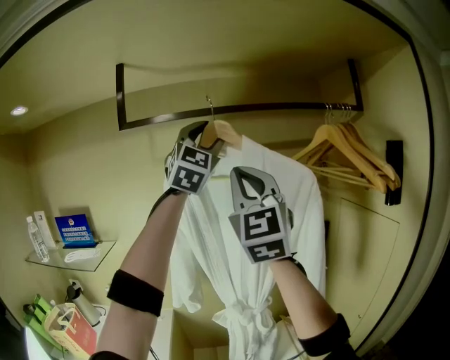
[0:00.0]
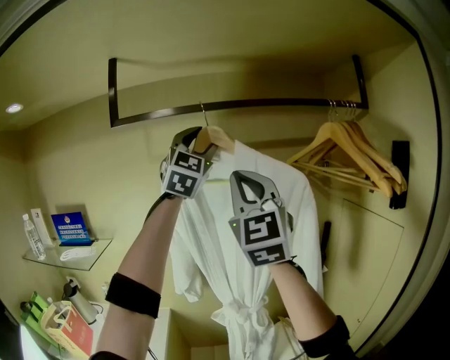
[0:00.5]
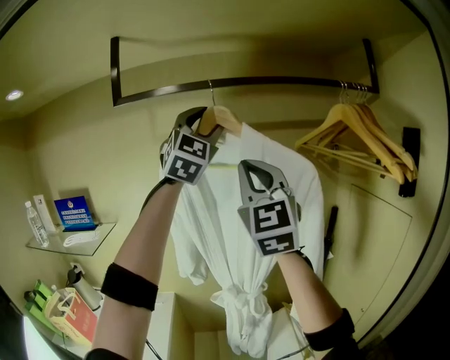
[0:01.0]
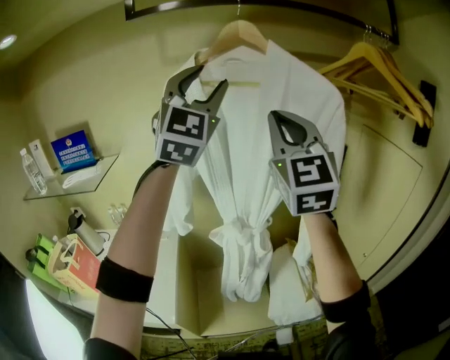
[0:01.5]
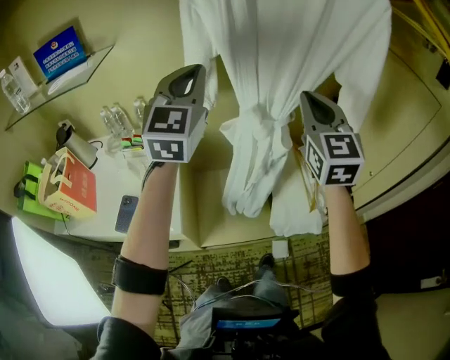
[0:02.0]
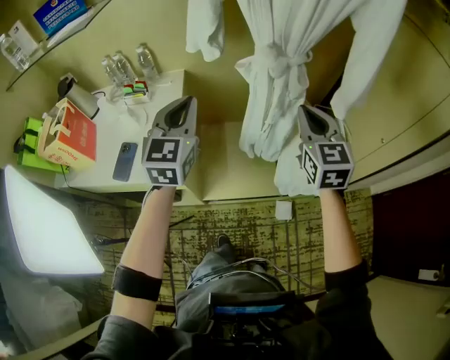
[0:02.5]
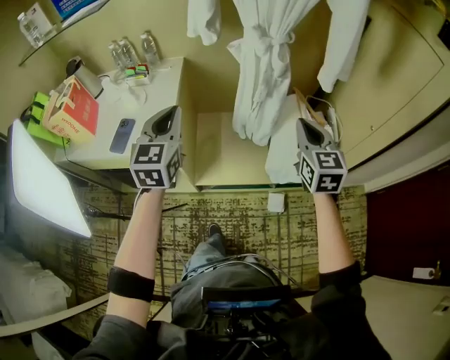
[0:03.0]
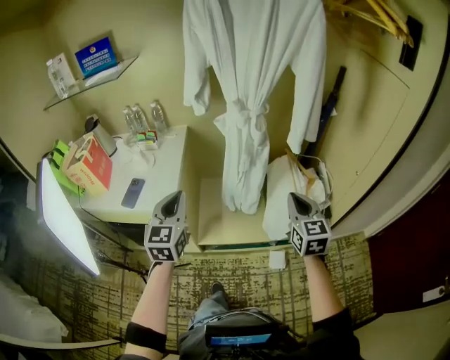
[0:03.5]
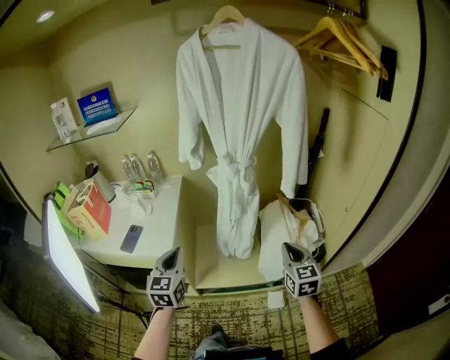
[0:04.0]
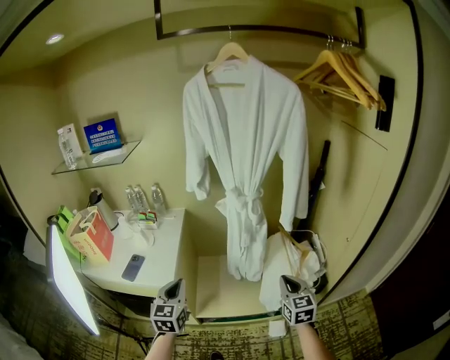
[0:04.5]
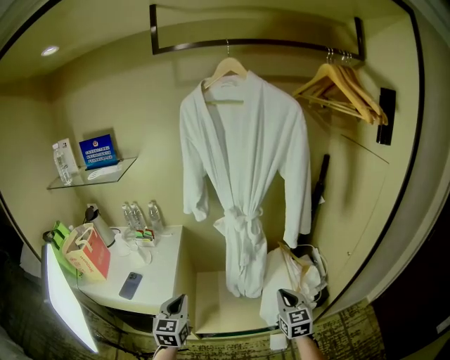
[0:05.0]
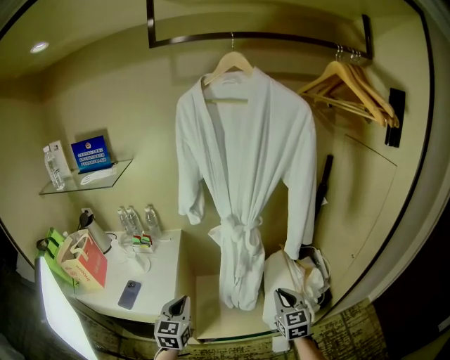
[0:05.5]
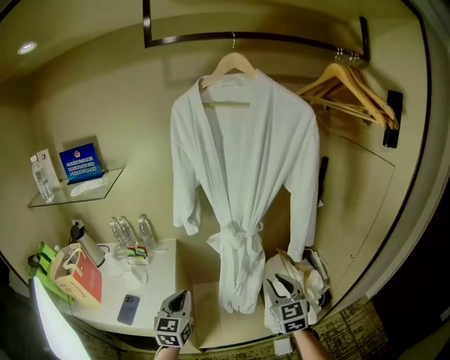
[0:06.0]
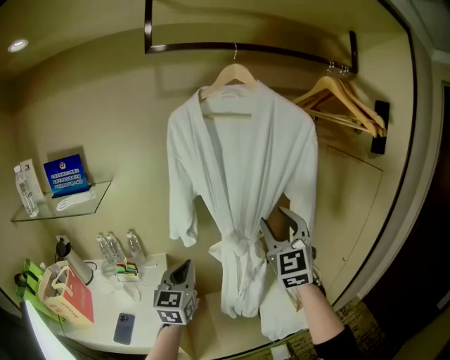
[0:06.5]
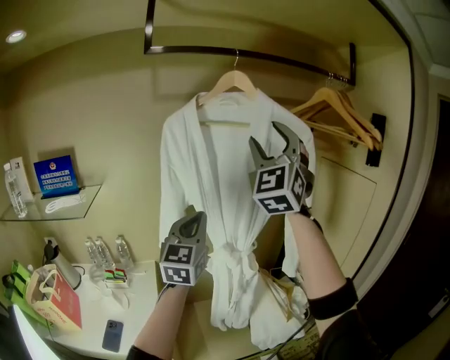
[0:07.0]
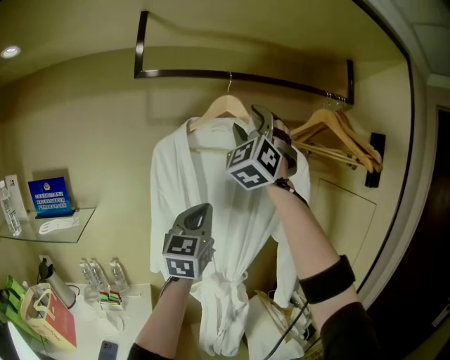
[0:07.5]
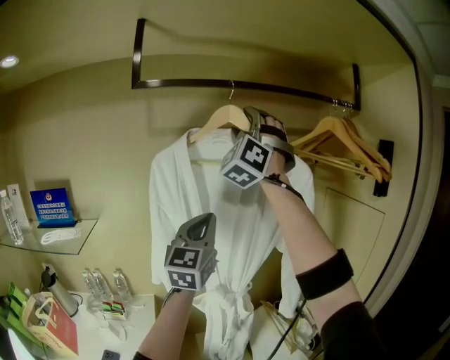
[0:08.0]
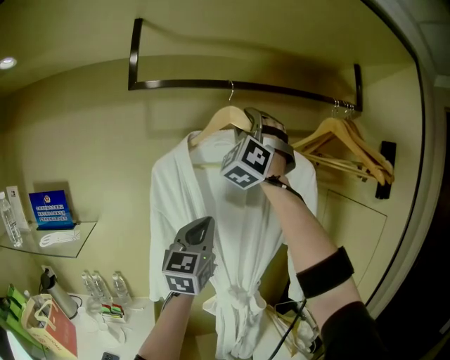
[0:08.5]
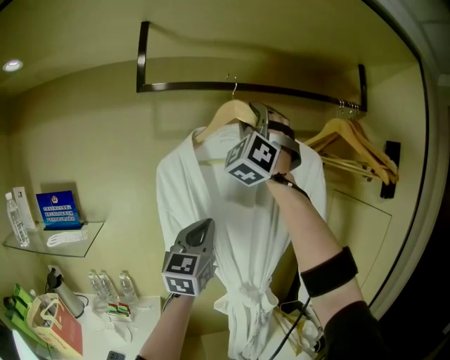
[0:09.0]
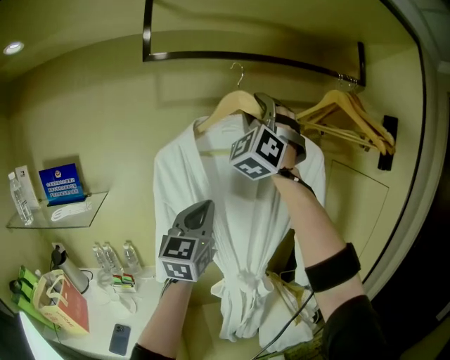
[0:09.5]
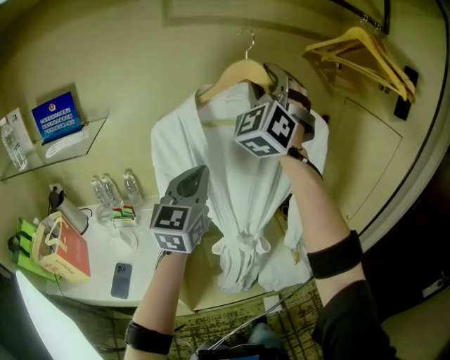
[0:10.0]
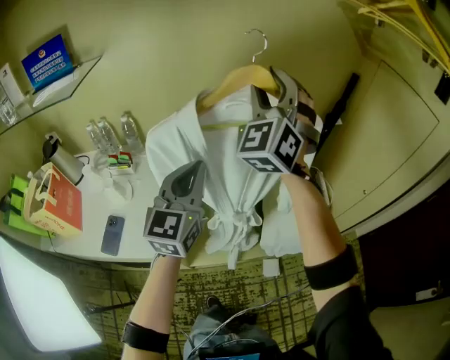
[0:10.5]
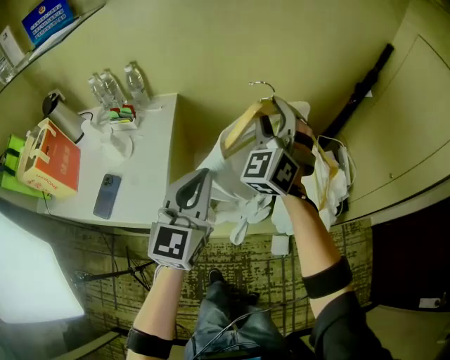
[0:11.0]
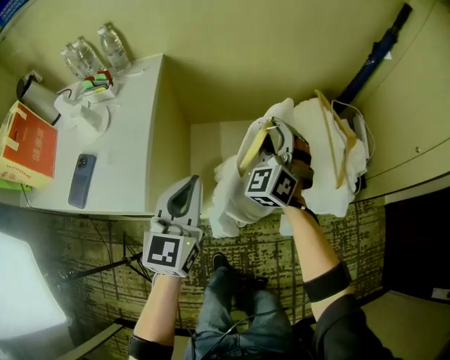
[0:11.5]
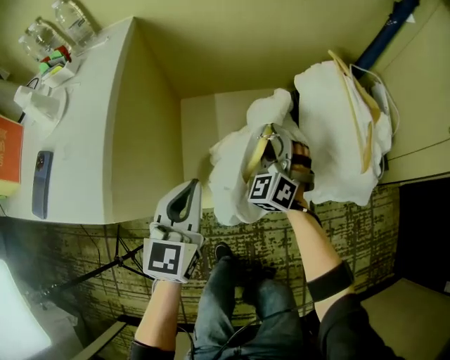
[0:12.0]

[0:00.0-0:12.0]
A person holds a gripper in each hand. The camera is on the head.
0.0 to 2.0 s: The right gripper shifts approximately 35 cm downward, and angles its fingers downward, by approximately 30 degrees; the left gripper goes approximately 40 cm downward and to the left, swivels about 40 degrees, and closes.
2.0 to 4.0 s: The left gripper heads backward and downward, covering approximately 40 cm, and changes its angle by roughly 30 degrees; the right gripper heads downward, backward and to the right, covering approximately 35 cm, and changes its angle by some 20 degrees.
4.0 to 6.0 s: The right gripper heads forward, to the left and upward, covering about 15 cm, and opens; the left gripper goes roughly 15 cm forward.
6.0 to 8.0 s: Both grippers travel together upward and forward, roughly 50 cm. The left gripper changes its angle by about 30 degrees; the right gripper twists about 60 degrees counterclockwise, seen from behind, and opens its fingers.
8.0 to 10.0 s: Both grippers move downward and backward, approximately 20 cm.
10.0 to 12.0 s: The left gripper heads downward, covering roughly 60 cm, and rotates roughly 30 degrees; the right gripper is displaced downward by roughly 90 cm, and tilts its fingers about 40 degrees downward.

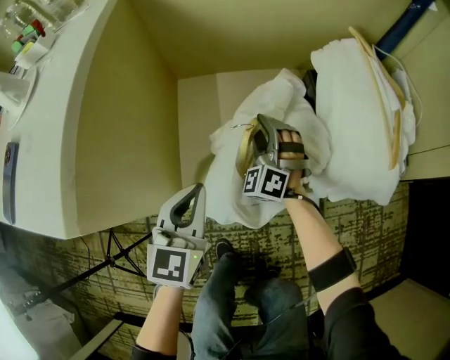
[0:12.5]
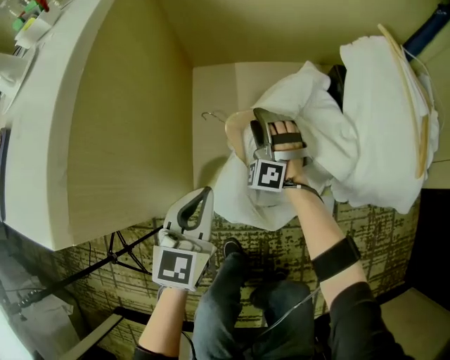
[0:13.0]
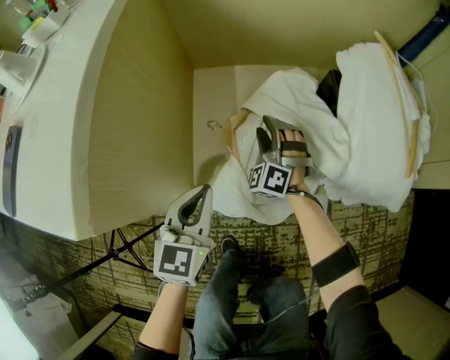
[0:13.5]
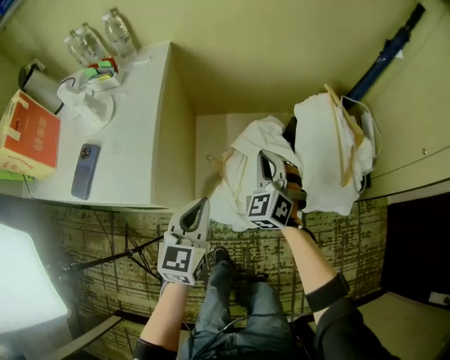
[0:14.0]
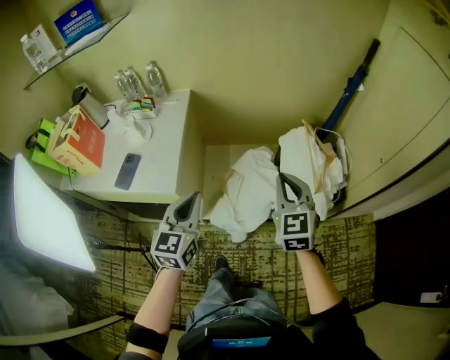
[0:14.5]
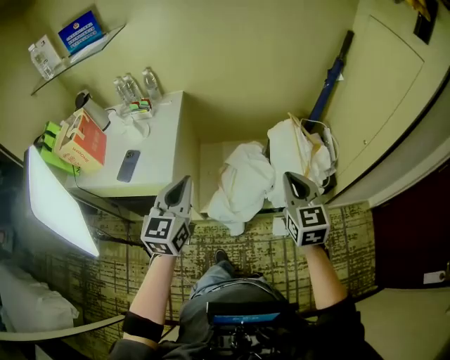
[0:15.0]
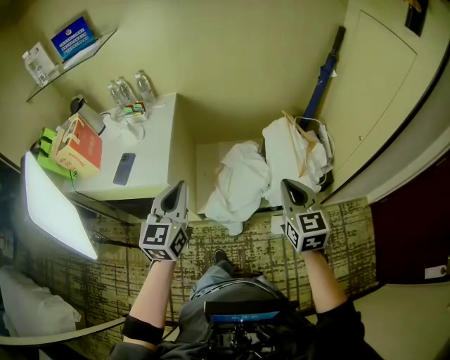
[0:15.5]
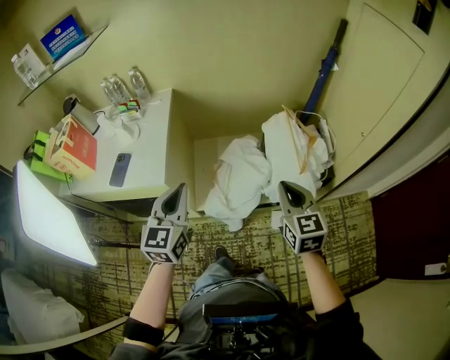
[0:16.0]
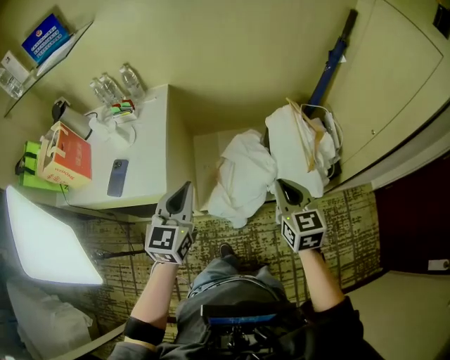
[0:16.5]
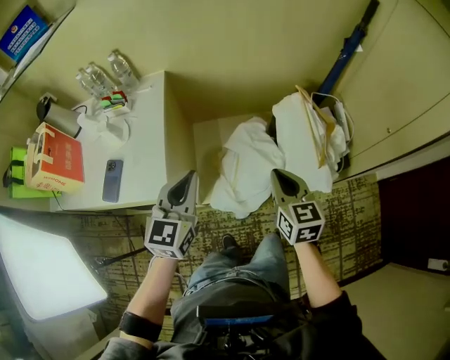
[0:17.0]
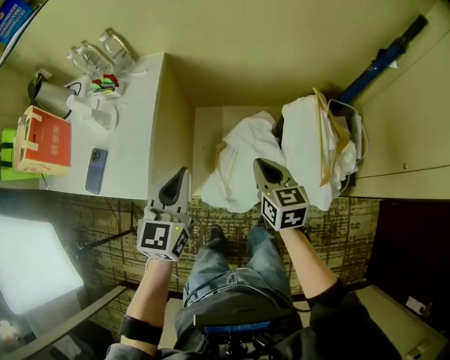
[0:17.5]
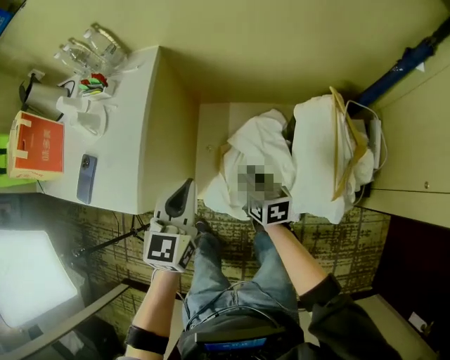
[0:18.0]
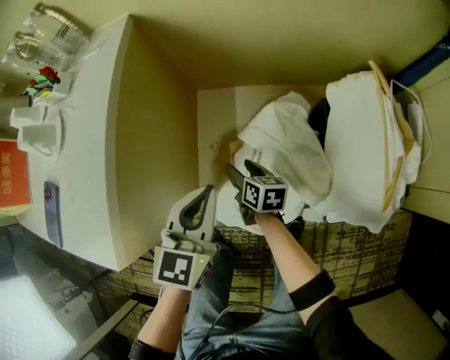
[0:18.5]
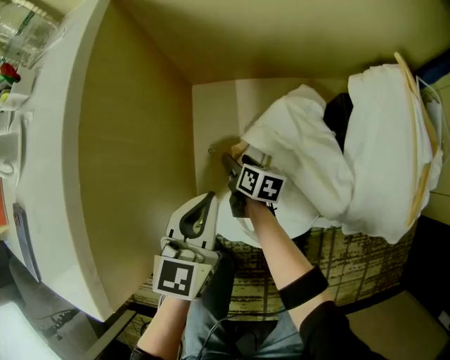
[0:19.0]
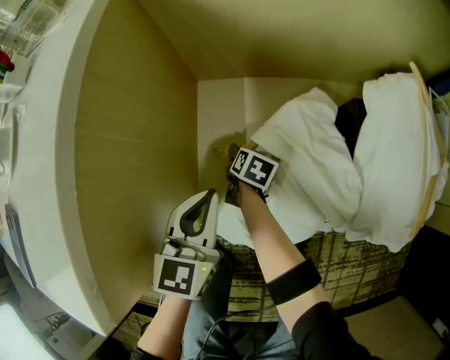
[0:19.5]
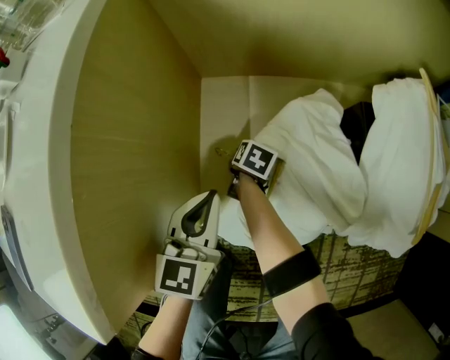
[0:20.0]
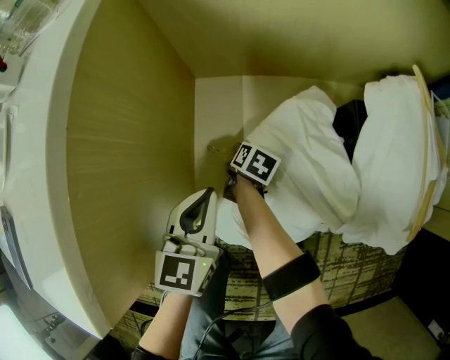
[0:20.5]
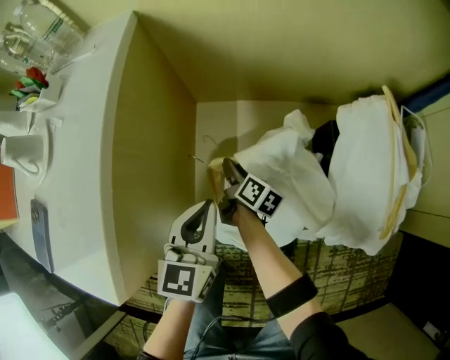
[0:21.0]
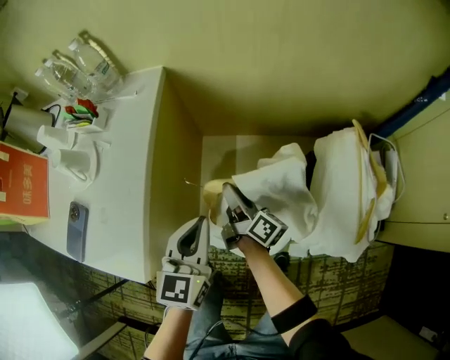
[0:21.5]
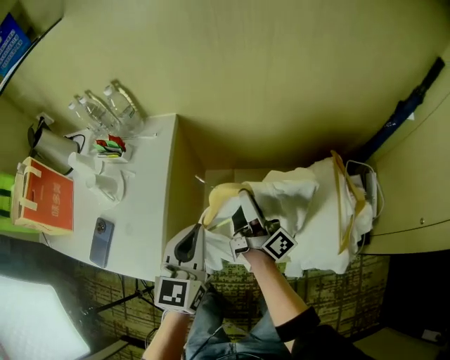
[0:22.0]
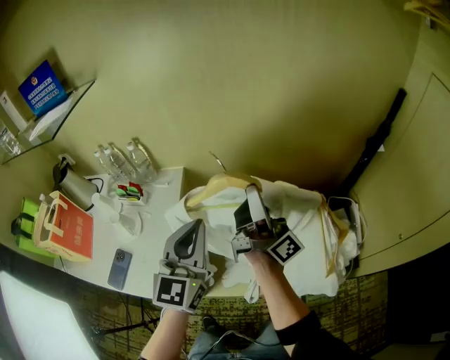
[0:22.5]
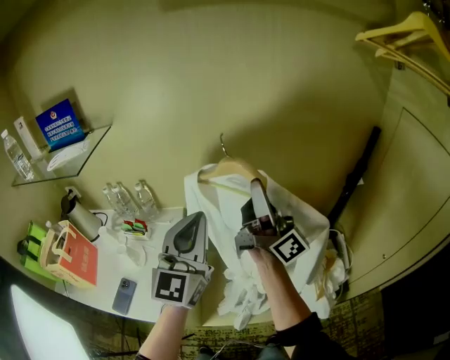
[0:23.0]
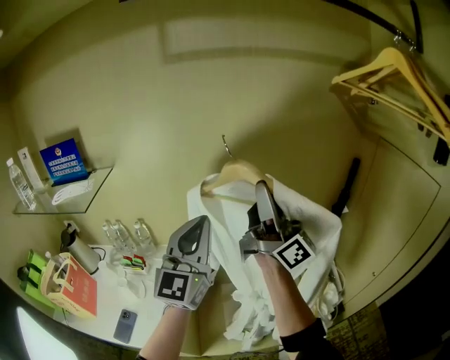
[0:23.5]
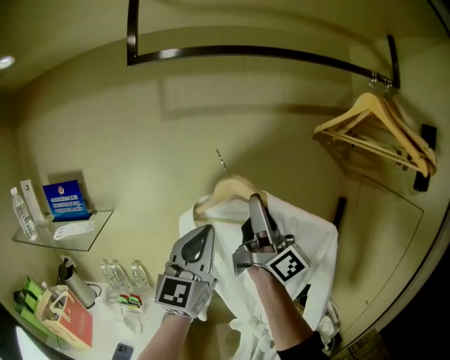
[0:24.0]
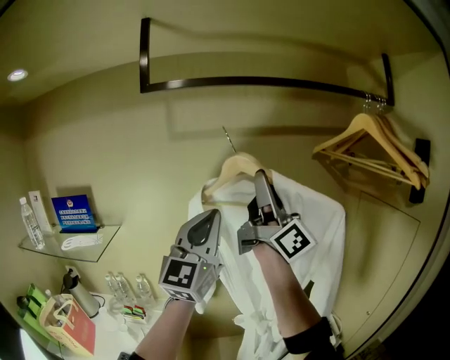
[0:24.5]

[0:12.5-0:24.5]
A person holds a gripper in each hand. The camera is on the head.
12.5 to 14.5 s: The left gripper shifts approximately 35 cm upward. The right gripper heads upward and backward, covering some 50 cm, twists about 40 degrees clockwise, seen from behind, and closes up.
14.5 to 16.5 s: The right gripper swivels approximately 20 degrees. The left gripper reaches roughly 10 cm upward, then returns.
16.5 to 18.5 s: The right gripper shifts approximately 60 cm downward and forward, turns by some 40 degrees, and opens its fingers; the left gripper is displaced downward and forward by about 35 cm.
18.5 to 20.5 s: The left gripper moves downward, approximately 15 cm; the right gripper is displaced downward and forward by some 20 cm, turns by roughly 30 degrees, and closes its fingers.
20.5 to 22.5 s: The left gripper is displaced upward by about 50 cm, and points its fingers roughly 30 degrees further upward, while the right gripper heads upward, covering roughly 80 cm, and tips its fingers upward by about 100 degrees.
22.5 to 24.5 s: Both grippers move upward, approximately 40 cm. The left gripper turns by approximately 30 degrees, while the right gripper changes its angle by roughly 40 degrees.

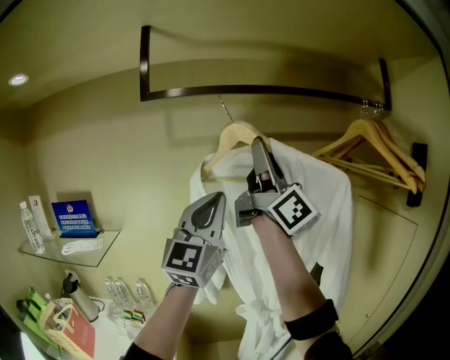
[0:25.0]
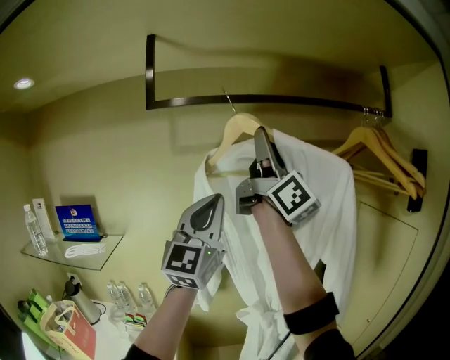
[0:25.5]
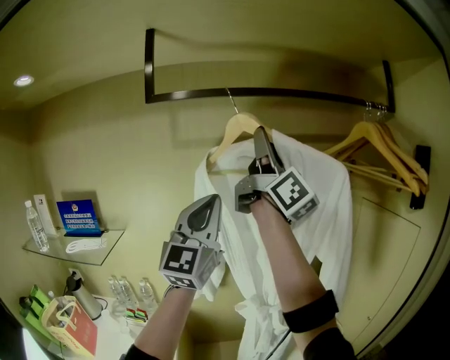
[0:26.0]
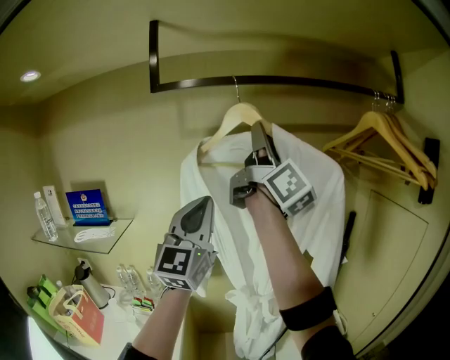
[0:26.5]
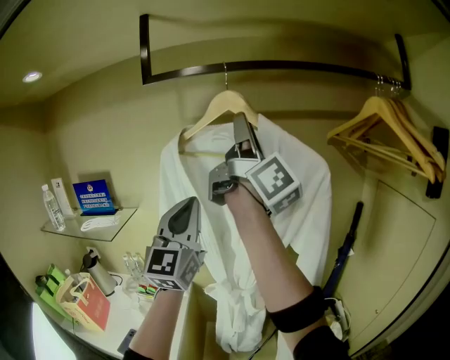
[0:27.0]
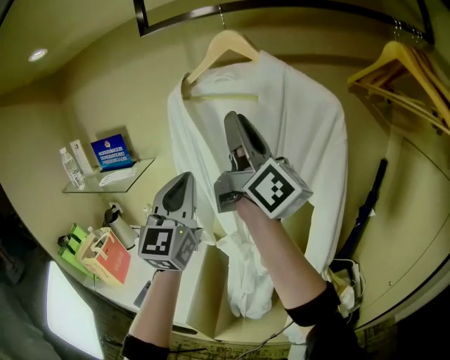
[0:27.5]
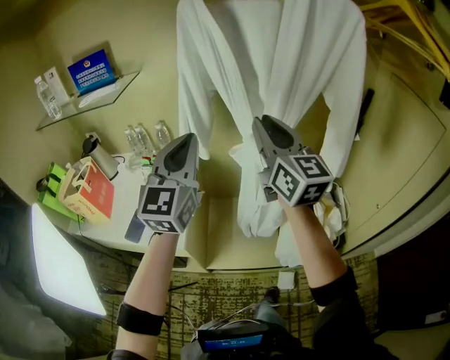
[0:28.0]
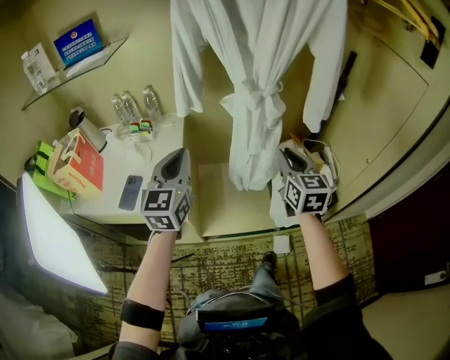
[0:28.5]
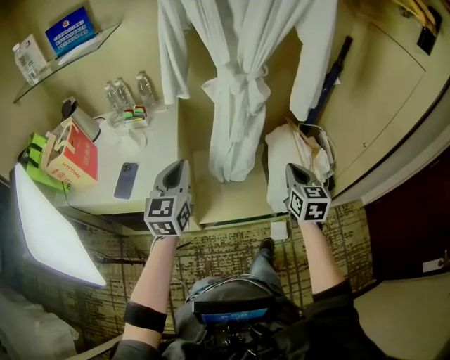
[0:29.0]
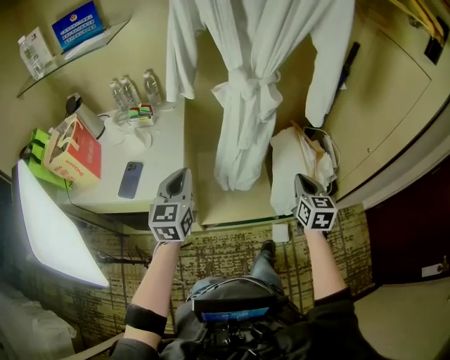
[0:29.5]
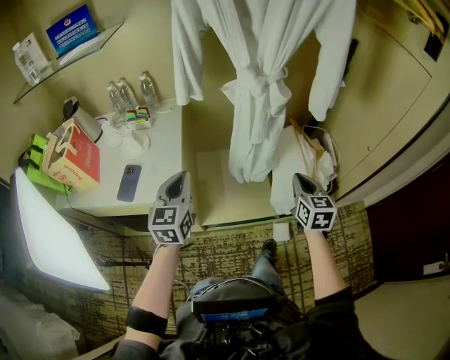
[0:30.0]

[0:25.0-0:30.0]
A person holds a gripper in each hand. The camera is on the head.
25.0 to 27.5 s: The right gripper heads downward and to the left, covering about 15 cm, and turns by about 20 degrees; the left gripper travels downward, to the left and backward by approximately 15 cm, and swivels some 30 degrees.
27.5 to 30.0 s: Both grippers move downward and backward, approximately 60 cm. The left gripper tilts its fingers about 40 degrees downward. Meanwhile the right gripper angles its fingers downward, by approximately 70 degrees, and closes its fingers.
